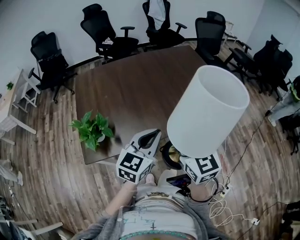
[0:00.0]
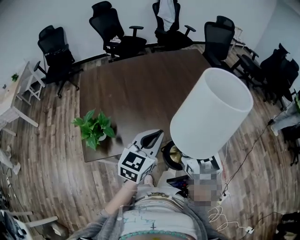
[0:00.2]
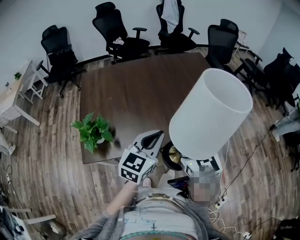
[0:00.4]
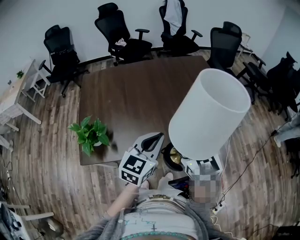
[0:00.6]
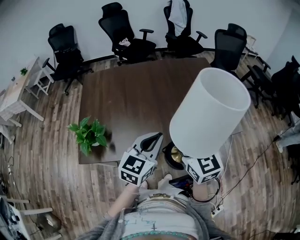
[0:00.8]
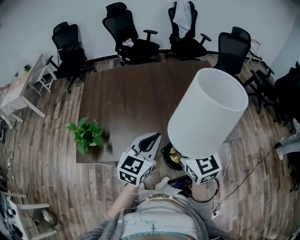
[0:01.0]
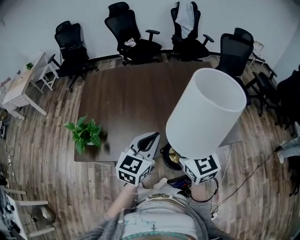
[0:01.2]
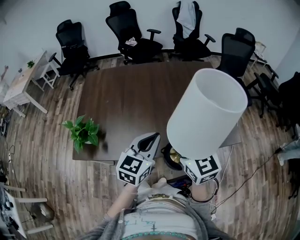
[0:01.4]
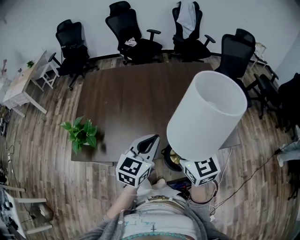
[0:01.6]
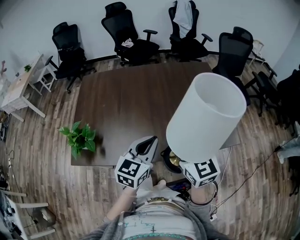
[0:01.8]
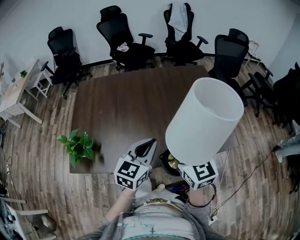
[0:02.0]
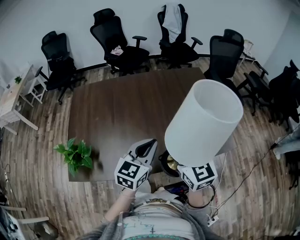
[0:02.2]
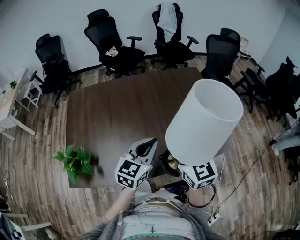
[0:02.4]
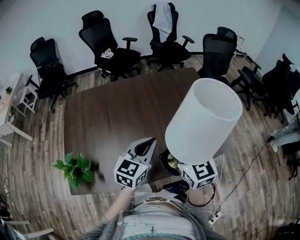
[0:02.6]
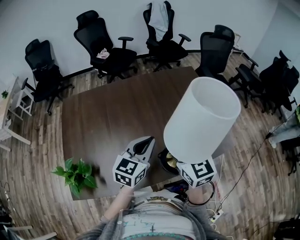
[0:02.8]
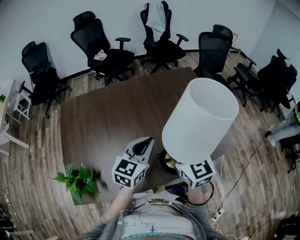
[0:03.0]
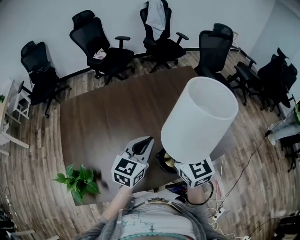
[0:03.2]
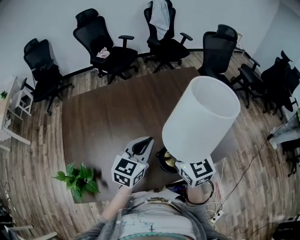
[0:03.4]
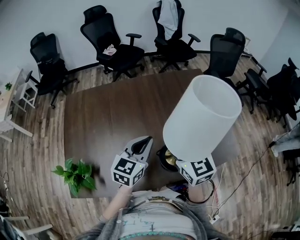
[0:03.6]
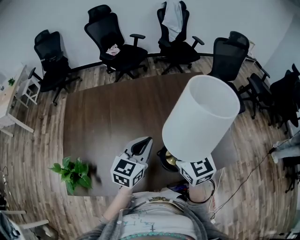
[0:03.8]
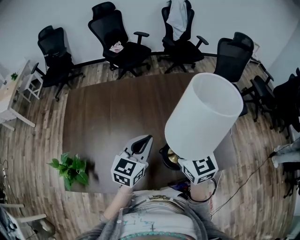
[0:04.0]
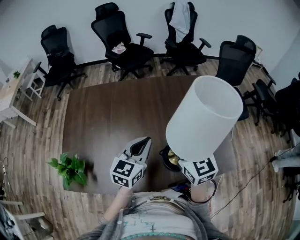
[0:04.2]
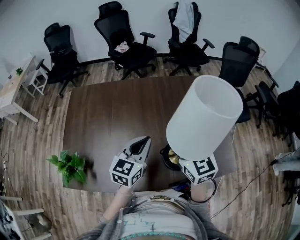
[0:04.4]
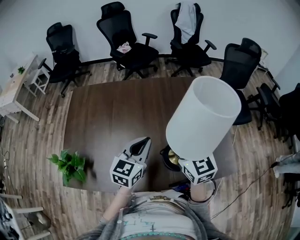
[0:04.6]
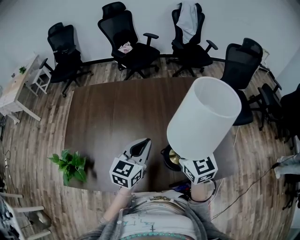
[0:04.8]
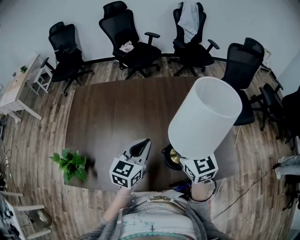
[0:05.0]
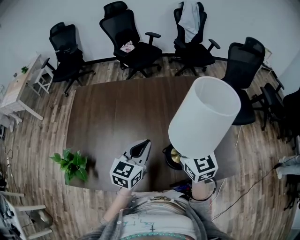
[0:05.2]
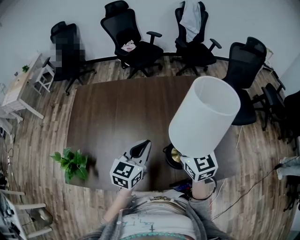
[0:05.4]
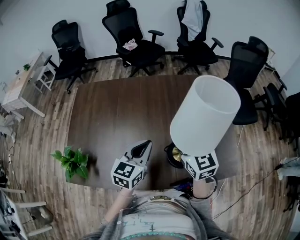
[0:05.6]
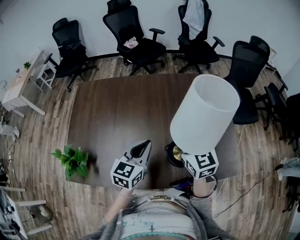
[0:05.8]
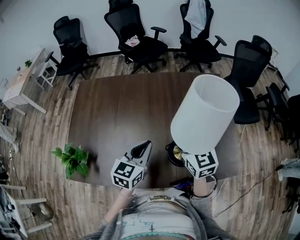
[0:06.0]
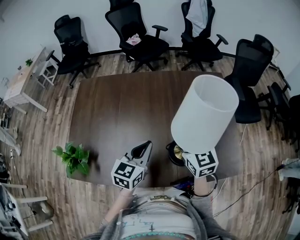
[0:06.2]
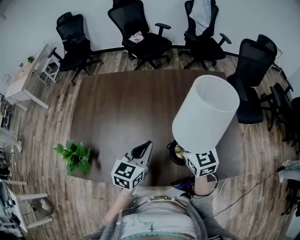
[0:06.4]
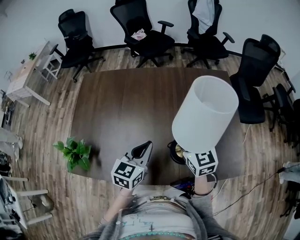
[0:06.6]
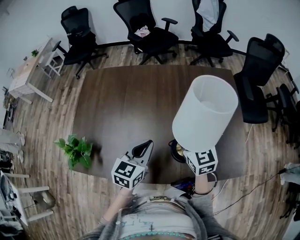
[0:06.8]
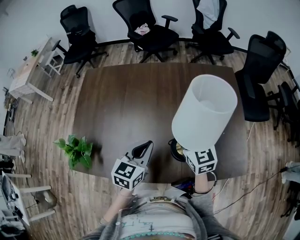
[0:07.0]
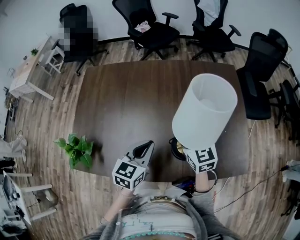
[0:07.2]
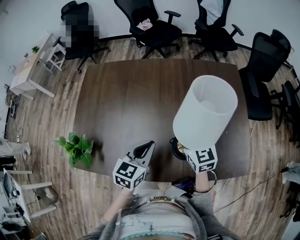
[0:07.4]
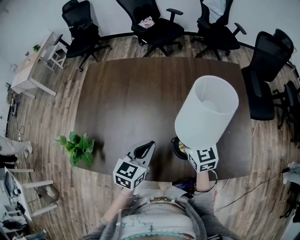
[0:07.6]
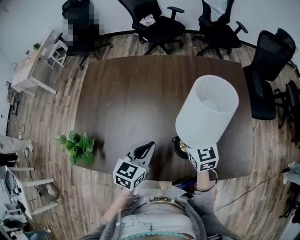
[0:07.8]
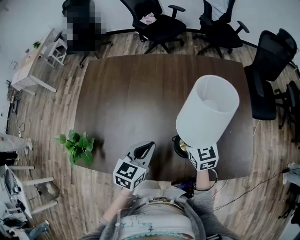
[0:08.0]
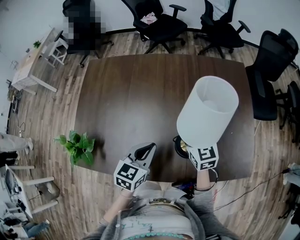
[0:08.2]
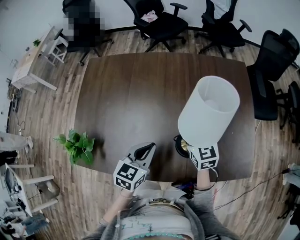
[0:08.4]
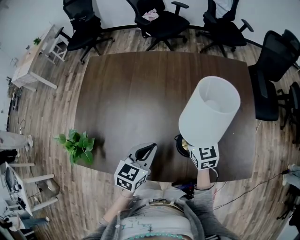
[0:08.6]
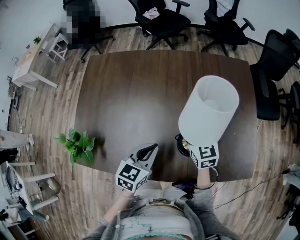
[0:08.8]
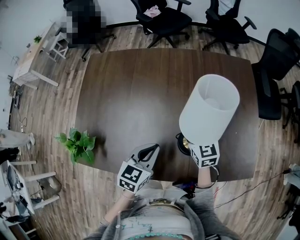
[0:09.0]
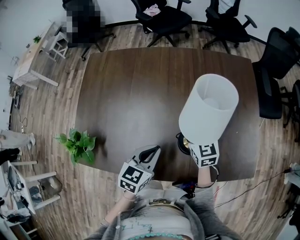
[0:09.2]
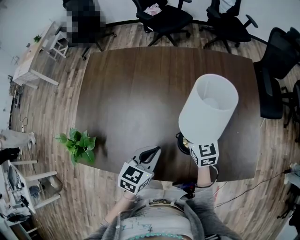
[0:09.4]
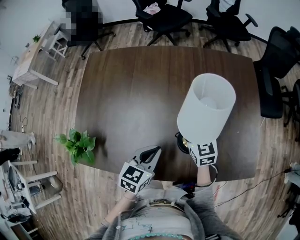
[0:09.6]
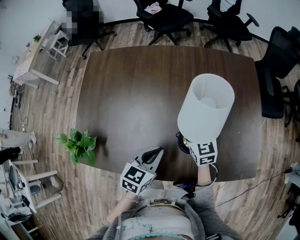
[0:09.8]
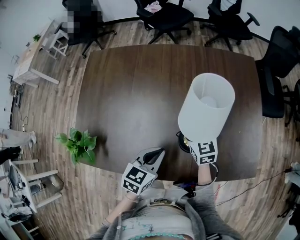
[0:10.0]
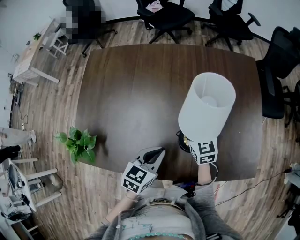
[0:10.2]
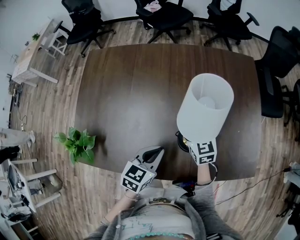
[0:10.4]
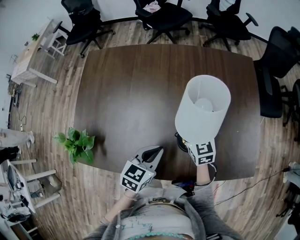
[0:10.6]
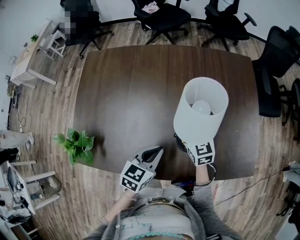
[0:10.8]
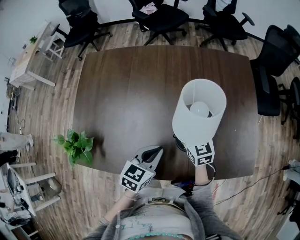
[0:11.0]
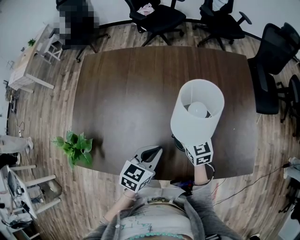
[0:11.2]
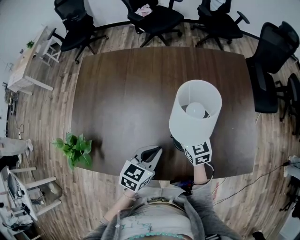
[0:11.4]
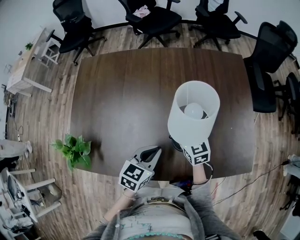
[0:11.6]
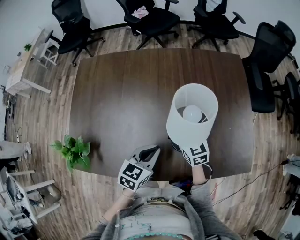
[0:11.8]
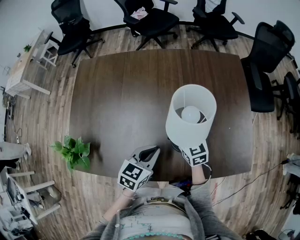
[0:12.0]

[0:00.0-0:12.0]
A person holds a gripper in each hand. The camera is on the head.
0:00.0 to 0:01.6: Both grippers travel together forward and to the right, approximately 15 cm.
0:01.6 to 0:03.0: The two grippers go about 15 cm forward.
0:03.0 to 0:04.4: The left gripper shifts by about 5 cm. Meanwhile the right gripper heads forward, covering some 10 cm.
0:04.4 to 0:06.0: The right gripper shifts by approximately 5 cm.
0:06.0 to 0:07.6: The left gripper ends up approximately 5 cm from where it was; the right gripper shifts roughly 10 cm downward.
0:07.6 to 0:09.0: The right gripper travels downward by some 5 cm.
0:09.0 to 0:12.0: There are only small adjustments of the grippers.

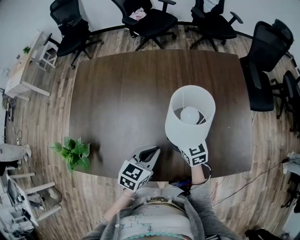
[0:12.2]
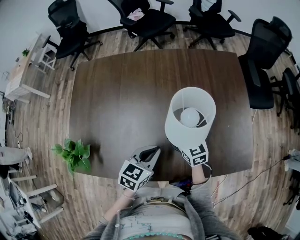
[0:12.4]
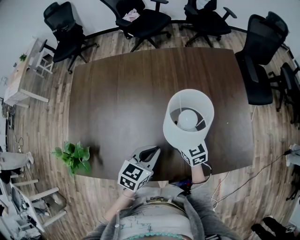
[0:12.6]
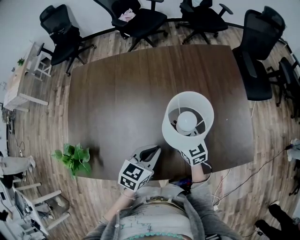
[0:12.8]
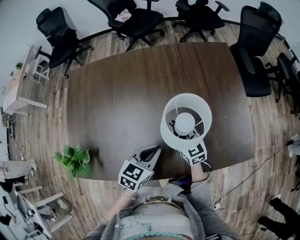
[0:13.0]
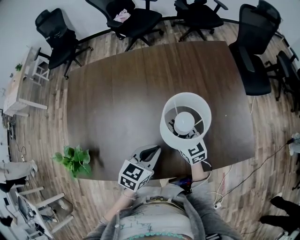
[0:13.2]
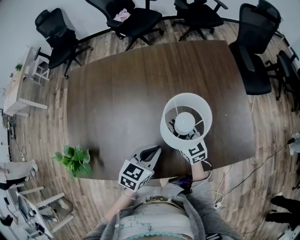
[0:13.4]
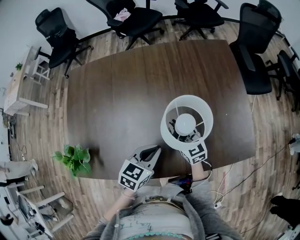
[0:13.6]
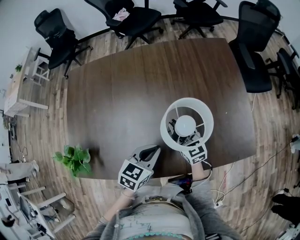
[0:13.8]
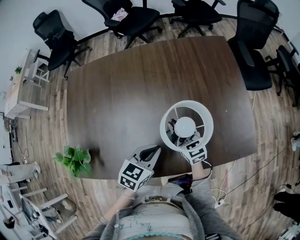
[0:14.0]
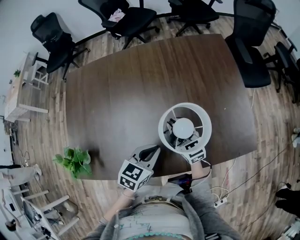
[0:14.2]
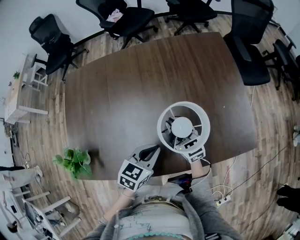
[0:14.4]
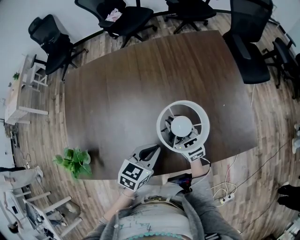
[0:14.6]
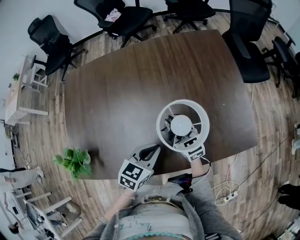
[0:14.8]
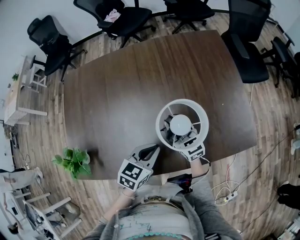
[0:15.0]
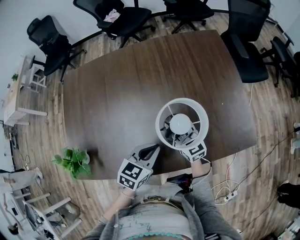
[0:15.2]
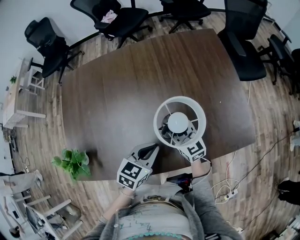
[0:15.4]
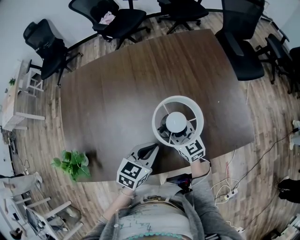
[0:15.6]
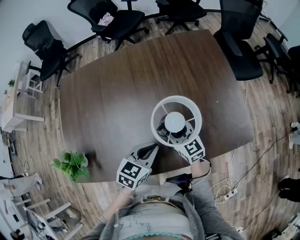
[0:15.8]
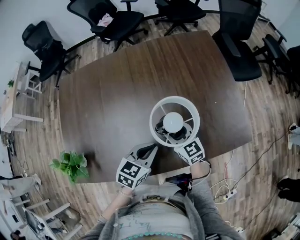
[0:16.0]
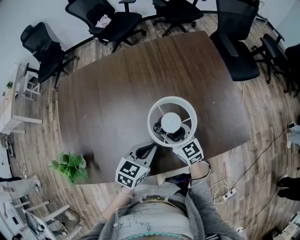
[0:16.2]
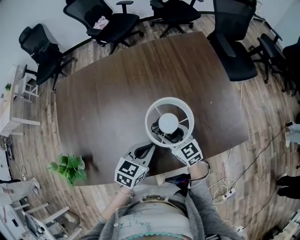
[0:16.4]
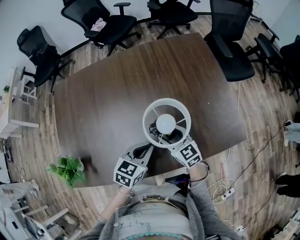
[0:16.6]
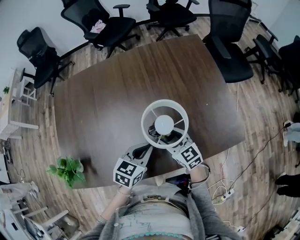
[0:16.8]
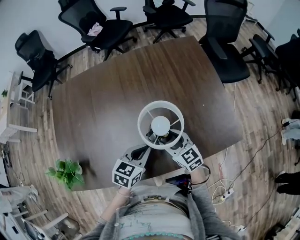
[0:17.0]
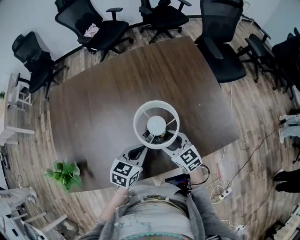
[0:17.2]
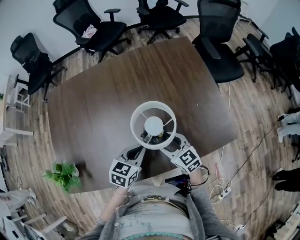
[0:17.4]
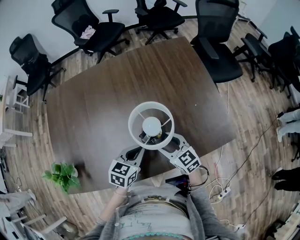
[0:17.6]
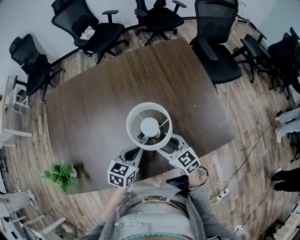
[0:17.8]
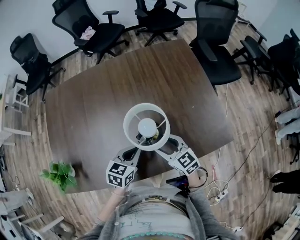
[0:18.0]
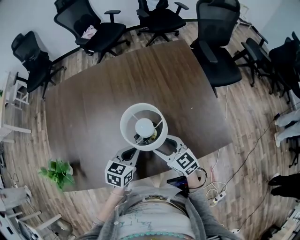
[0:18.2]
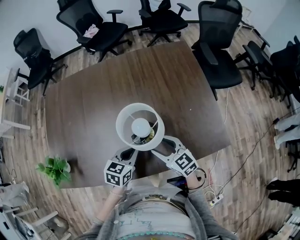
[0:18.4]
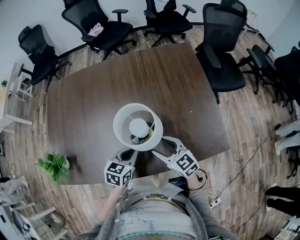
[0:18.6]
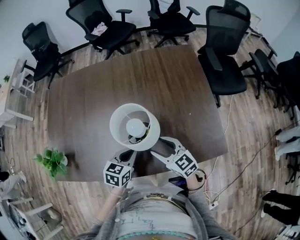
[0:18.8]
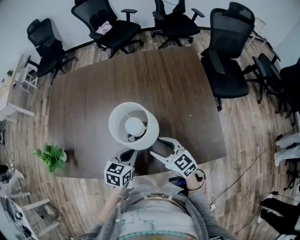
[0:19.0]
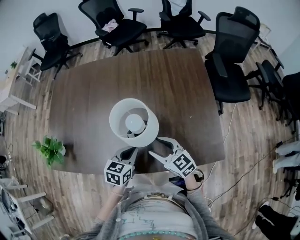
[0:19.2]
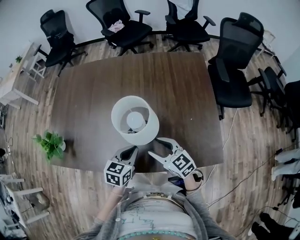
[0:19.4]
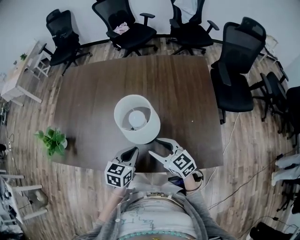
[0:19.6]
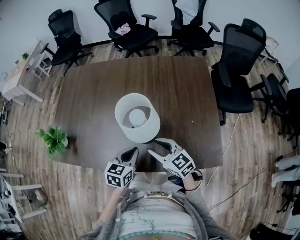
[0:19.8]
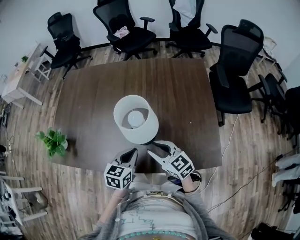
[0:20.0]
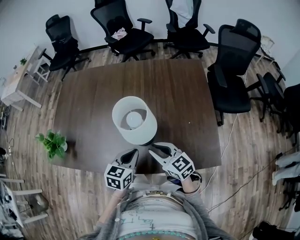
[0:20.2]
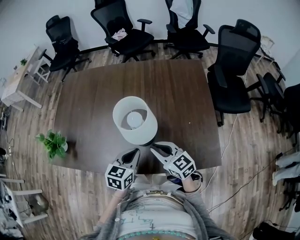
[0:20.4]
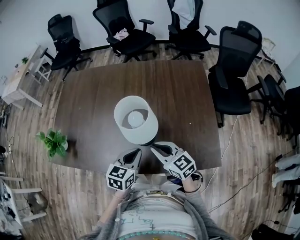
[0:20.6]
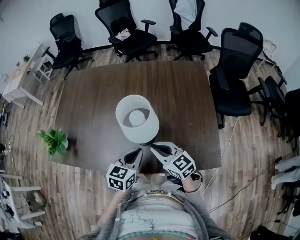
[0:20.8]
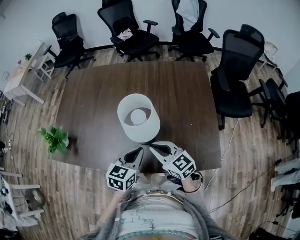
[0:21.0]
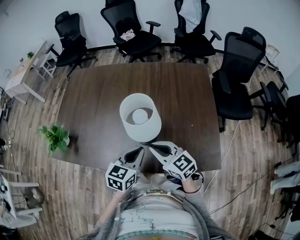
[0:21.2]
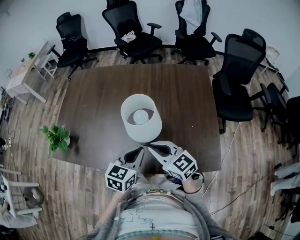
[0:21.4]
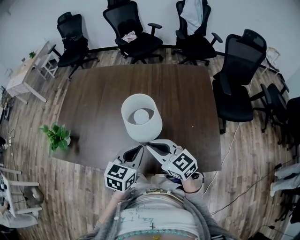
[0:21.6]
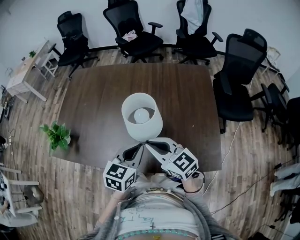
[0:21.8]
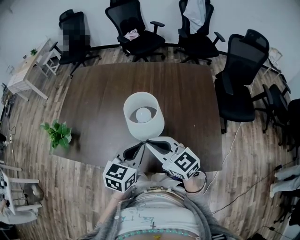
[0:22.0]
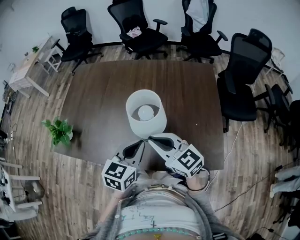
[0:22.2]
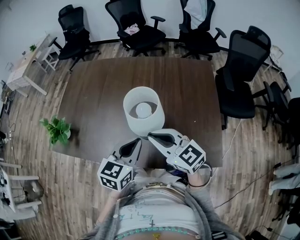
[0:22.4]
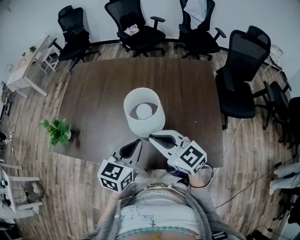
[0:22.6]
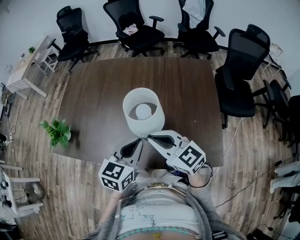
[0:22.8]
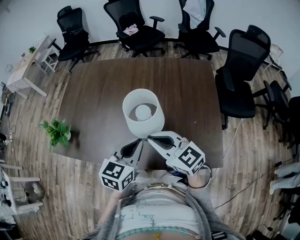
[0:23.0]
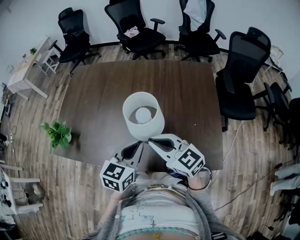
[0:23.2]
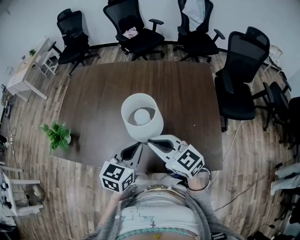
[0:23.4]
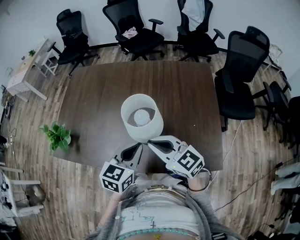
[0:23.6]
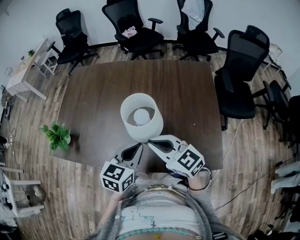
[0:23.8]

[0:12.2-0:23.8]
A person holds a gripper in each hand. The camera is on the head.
0:12.2 to 0:15.0: The grippers stay close to where they were, moving slightly.
0:15.0 to 0:16.6: The right gripper ends up roughly 5 cm from where it was, and opens its fingers.
0:16.6 to 0:18.0: The right gripper shifts by some 5 cm.
0:18.0 to 0:19.4: The left gripper moves roughly 5 cm.
0:19.4 to 0:21.0: The left gripper goes some 5 cm upward, while the right gripper shifts by roughly 5 cm, and closes.
0:21.0 to 0:22.4: Both grippers travel together upward, roughly 10 cm.
0:22.4 to 0:23.8: The grippers stay close to where they were, moving slightly.

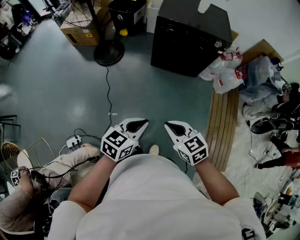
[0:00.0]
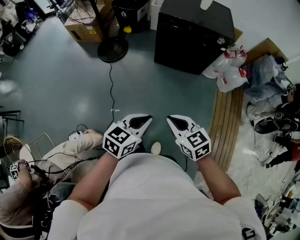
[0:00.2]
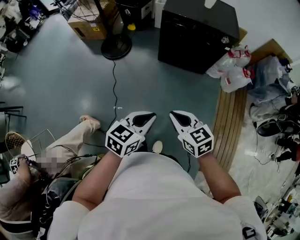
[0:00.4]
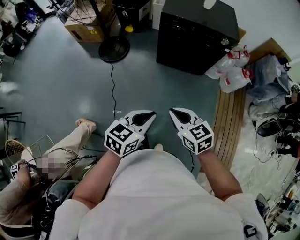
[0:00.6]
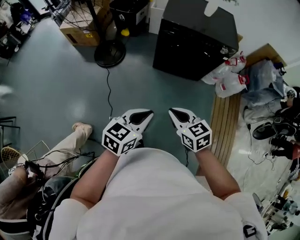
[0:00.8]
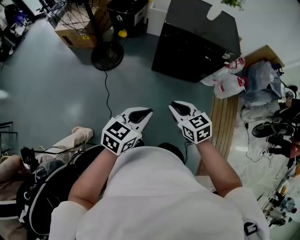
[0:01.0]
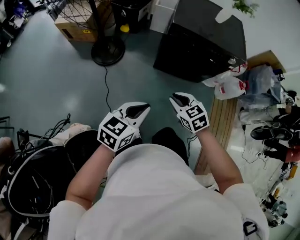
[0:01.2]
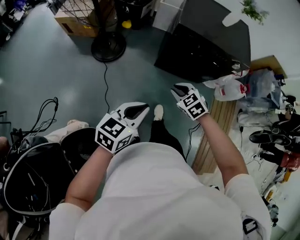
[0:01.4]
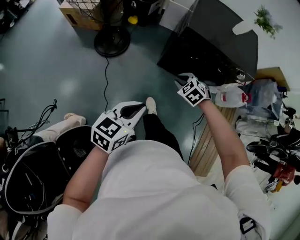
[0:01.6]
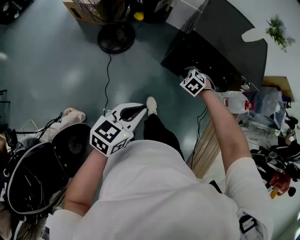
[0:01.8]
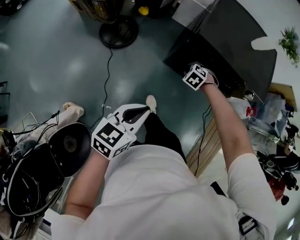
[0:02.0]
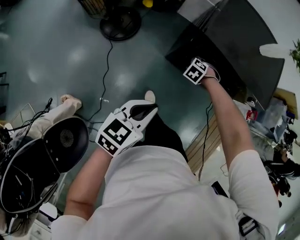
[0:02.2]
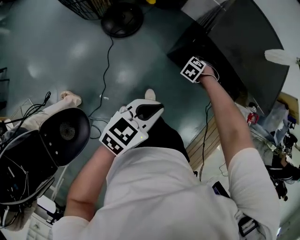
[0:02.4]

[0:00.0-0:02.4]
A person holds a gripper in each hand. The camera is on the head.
0:00.0 to 0:01.2: The left gripper ends up about 20 cm from where it was.
0:01.2 to 0:02.4: The left gripper shifts by about 20 cm.
